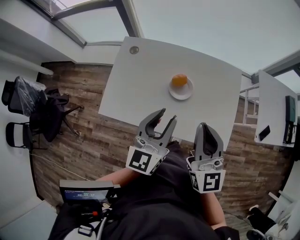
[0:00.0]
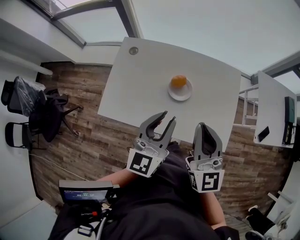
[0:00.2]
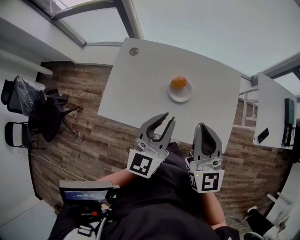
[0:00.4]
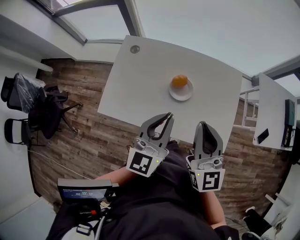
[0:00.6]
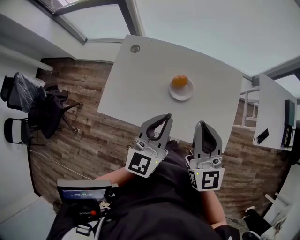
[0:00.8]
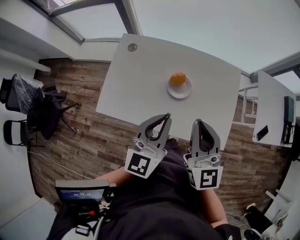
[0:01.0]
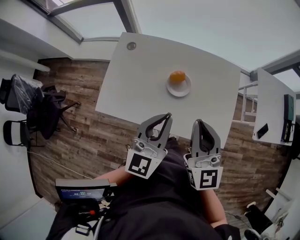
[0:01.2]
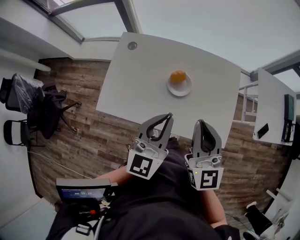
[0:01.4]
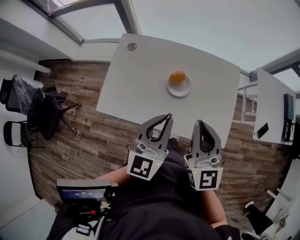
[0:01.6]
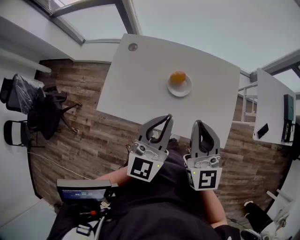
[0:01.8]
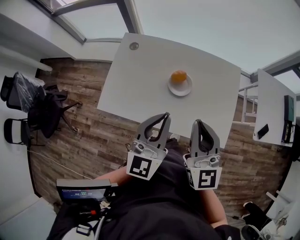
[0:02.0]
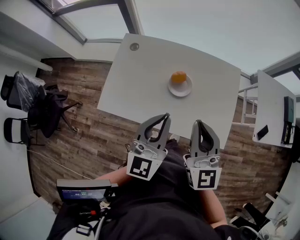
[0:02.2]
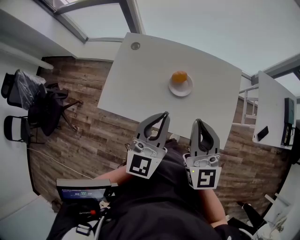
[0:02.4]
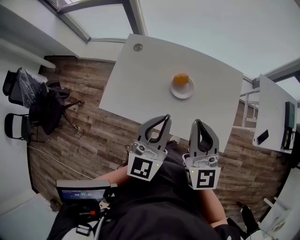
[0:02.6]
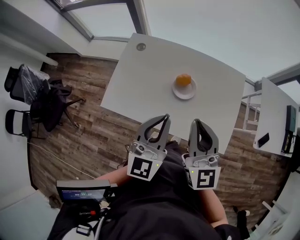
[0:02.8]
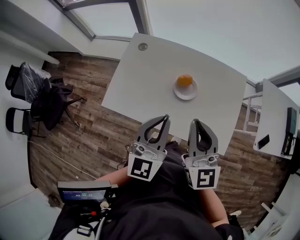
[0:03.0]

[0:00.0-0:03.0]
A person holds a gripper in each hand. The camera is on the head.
0:00.0 to 0:01.6: The left gripper closes its fingers.
0:01.6 to 0:03.0: The grippers move only a little.

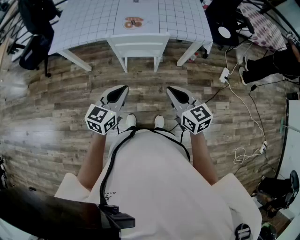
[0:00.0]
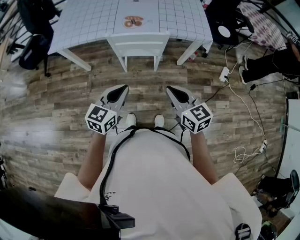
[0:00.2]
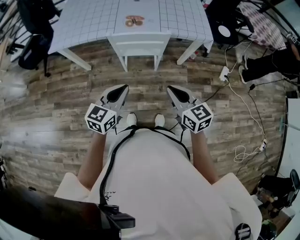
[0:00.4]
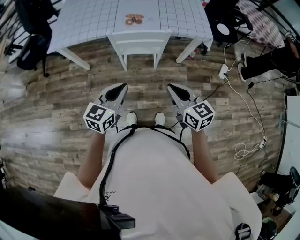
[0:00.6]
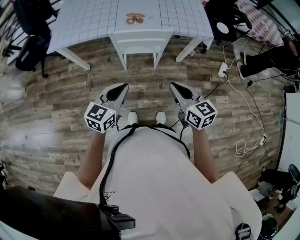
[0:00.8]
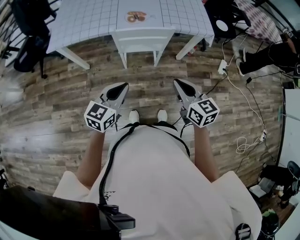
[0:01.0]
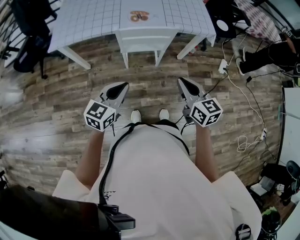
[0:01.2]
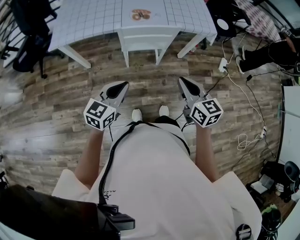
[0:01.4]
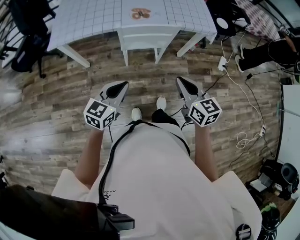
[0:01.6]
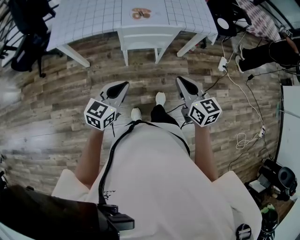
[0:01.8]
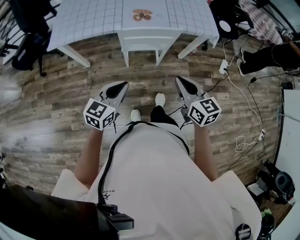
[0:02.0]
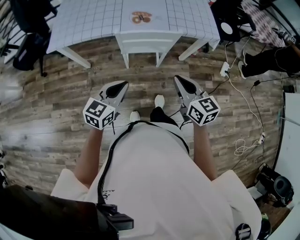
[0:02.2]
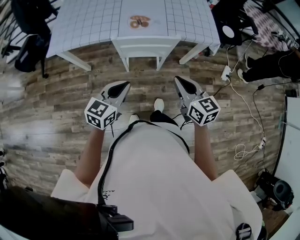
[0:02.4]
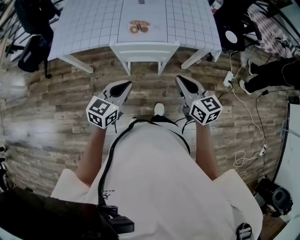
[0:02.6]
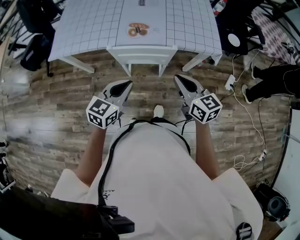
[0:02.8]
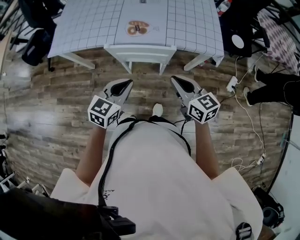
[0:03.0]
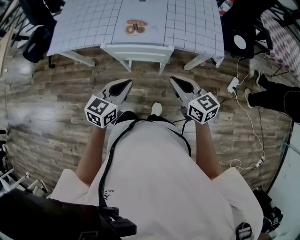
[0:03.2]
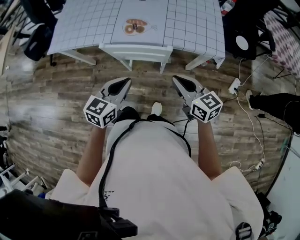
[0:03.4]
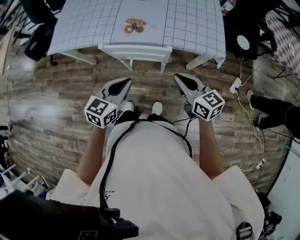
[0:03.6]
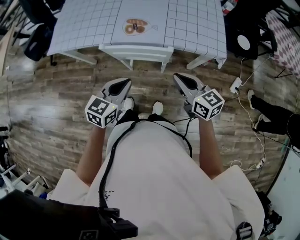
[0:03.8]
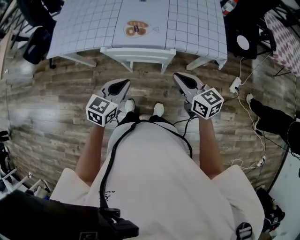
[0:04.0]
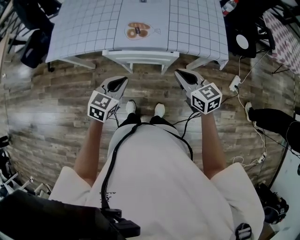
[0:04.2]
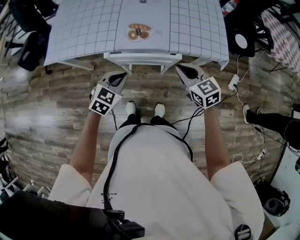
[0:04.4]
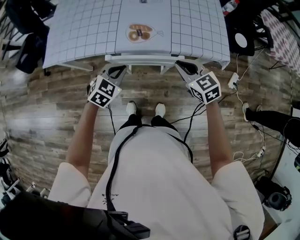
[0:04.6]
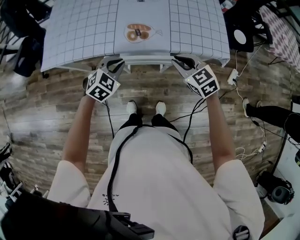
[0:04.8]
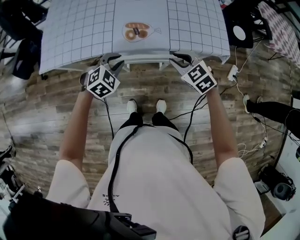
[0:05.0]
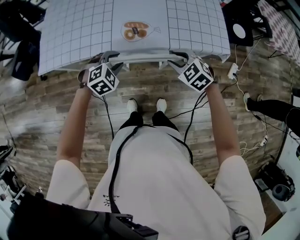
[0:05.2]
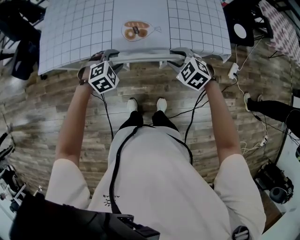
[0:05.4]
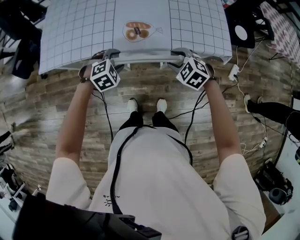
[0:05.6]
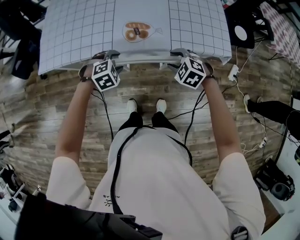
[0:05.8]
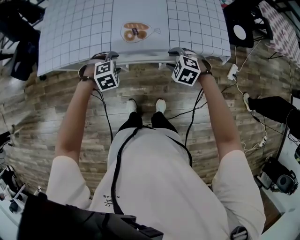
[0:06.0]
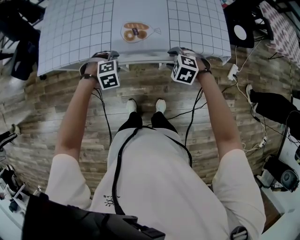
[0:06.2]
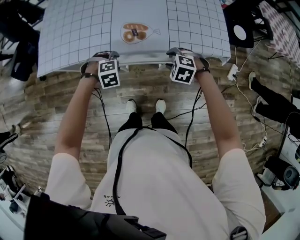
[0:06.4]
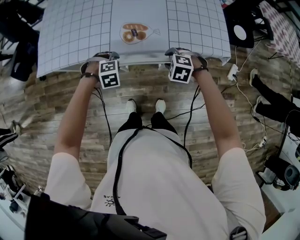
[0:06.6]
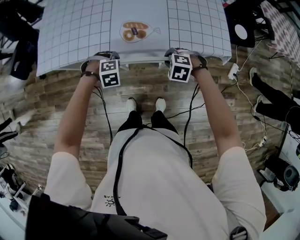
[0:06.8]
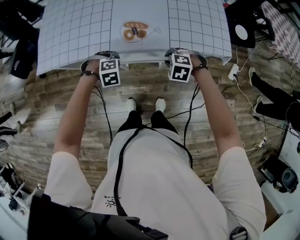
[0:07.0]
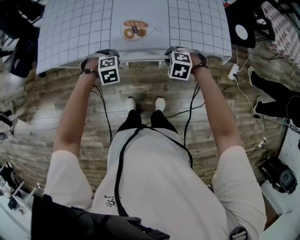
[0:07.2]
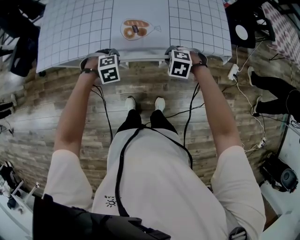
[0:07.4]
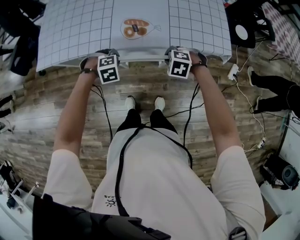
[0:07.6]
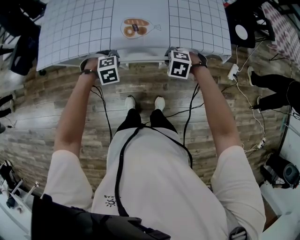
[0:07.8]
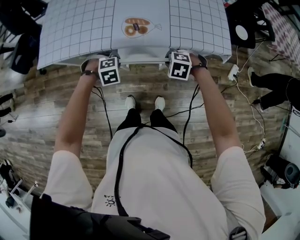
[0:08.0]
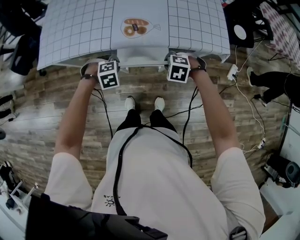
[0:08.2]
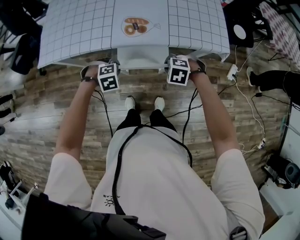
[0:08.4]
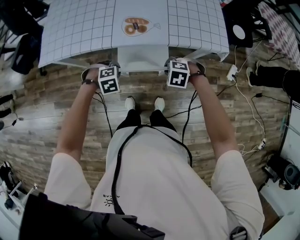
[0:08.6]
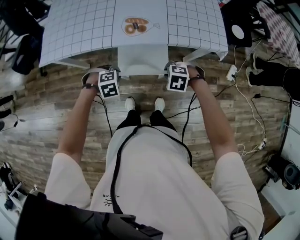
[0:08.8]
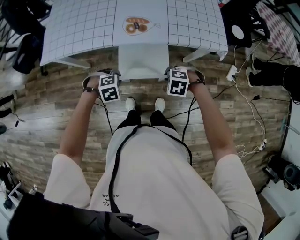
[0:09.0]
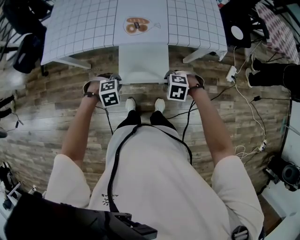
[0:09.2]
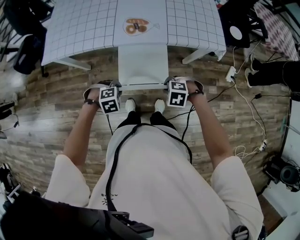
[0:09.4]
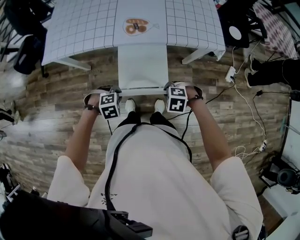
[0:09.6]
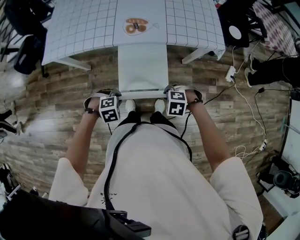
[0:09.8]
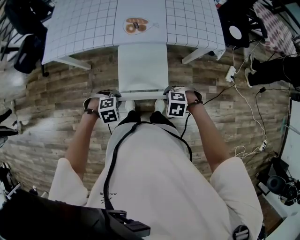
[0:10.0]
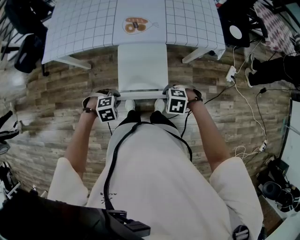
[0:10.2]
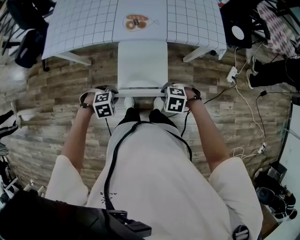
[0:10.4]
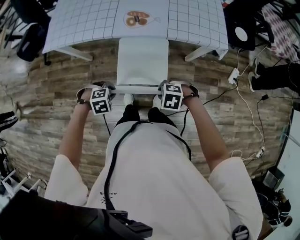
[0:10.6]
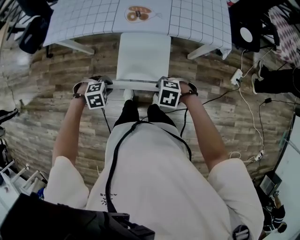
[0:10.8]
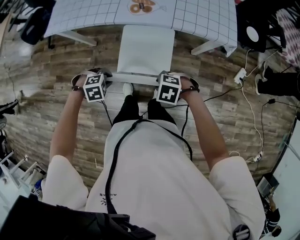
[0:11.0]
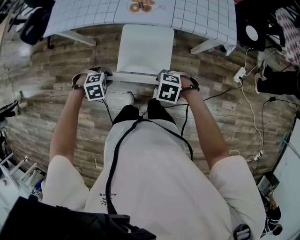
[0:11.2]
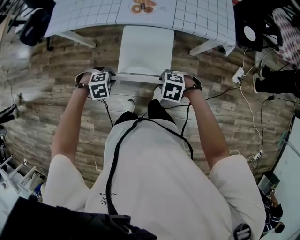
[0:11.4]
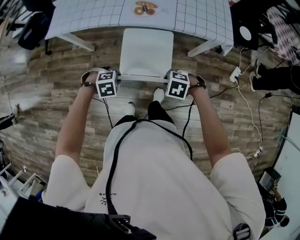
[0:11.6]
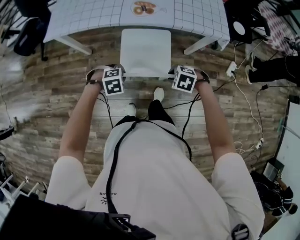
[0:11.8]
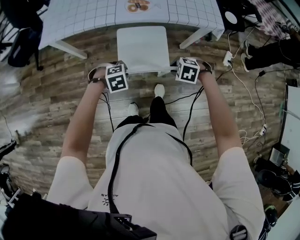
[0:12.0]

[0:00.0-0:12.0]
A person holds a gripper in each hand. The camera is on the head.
0:00.0 to 0:01.6: Both grippers travel together to the left, approximately 10 cm.
0:01.6 to 0:03.0: The grippers both shift forward and to the right by about 20 cm.
0:03.0 to 0:04.4: The left gripper travels forward and downward by some 15 cm, and rotates roughly 20 degrees; the right gripper is displaced forward by approximately 10 cm.
0:04.4 to 0:06.0: The left gripper goes roughly 15 cm forward and downward, tips its fingers downward by approximately 30 degrees, and opens up. Meanwhile the right gripper moves downward and forward, about 15 cm, tips its fingers downward by about 40 degrees, and opens its fingers.
0:06.0 to 0:07.6: The left gripper closes its fingers. Meanwhile the right gripper closes.
0:07.6 to 0:09.0: The right gripper shifts by approximately 15 cm. Meanwhile the left gripper ends up some 15 cm from where it was.
0:09.0 to 0:10.4: The left gripper changes place by approximately 10 cm, while the right gripper ends up about 10 cm from where it was.
0:10.4 to 0:12.0: There are only small adjustments of the grippers.

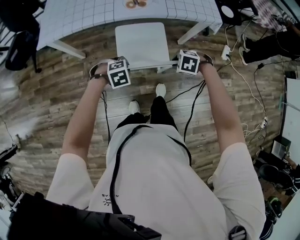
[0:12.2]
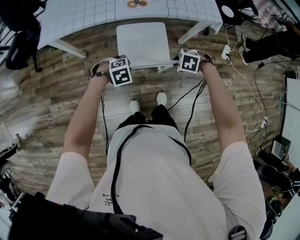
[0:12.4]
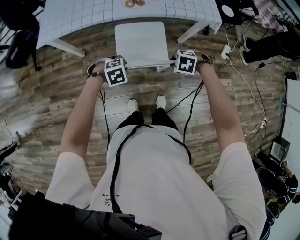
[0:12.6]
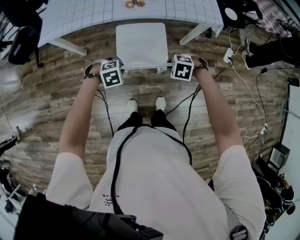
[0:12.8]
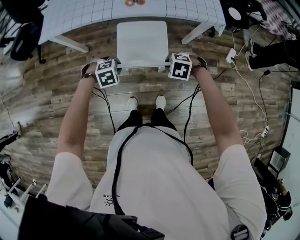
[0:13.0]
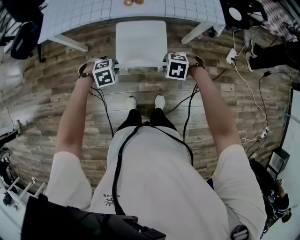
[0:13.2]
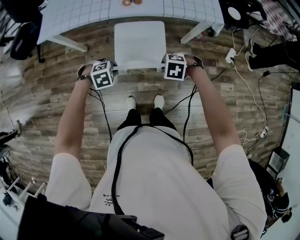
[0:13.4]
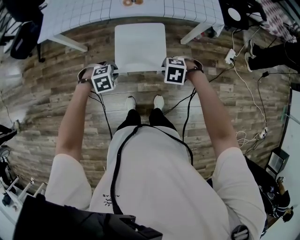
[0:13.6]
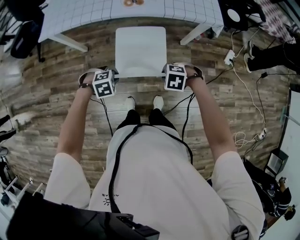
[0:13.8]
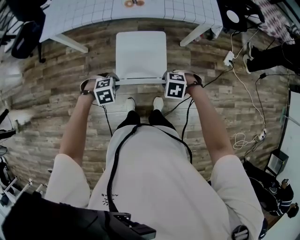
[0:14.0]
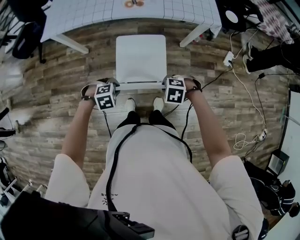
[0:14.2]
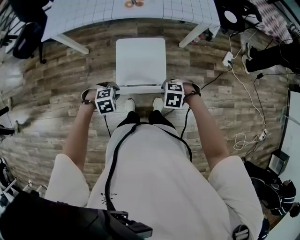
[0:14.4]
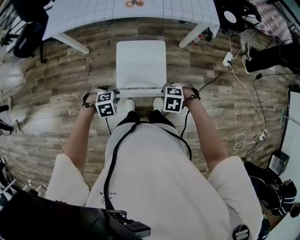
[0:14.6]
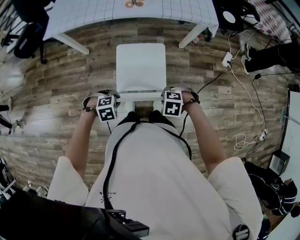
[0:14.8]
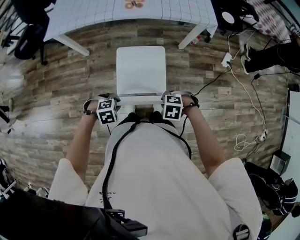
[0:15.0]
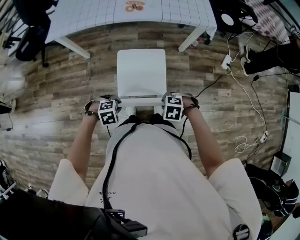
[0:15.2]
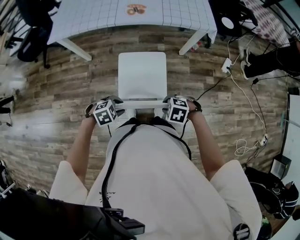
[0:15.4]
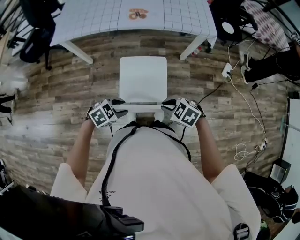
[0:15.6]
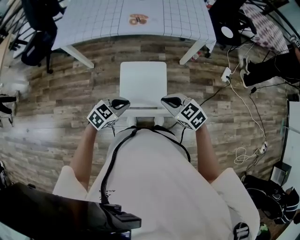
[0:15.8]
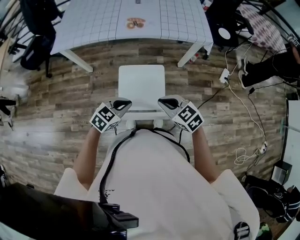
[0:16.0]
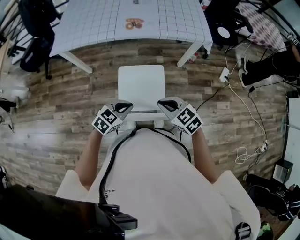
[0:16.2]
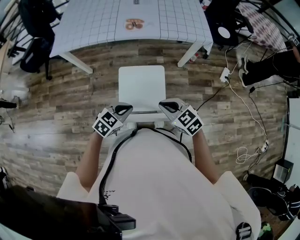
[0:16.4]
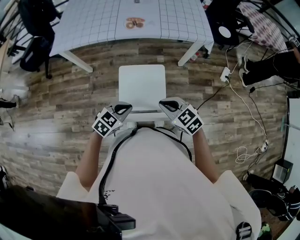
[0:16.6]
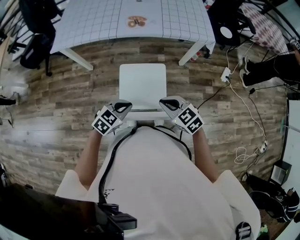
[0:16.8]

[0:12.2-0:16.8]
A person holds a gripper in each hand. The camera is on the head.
0:12.2 to 0:13.8: The right gripper changes place by about 5 cm, while the left gripper shifts by some 5 cm.
0:13.8 to 0:15.2: The right gripper changes place by some 15 cm. The left gripper changes place by approximately 20 cm.
0:15.2 to 0:16.8: The grippers both shift upward by approximately 10 cm. The right gripper tips its fingers upward by approximately 40 degrees, and closes up. Meanwhile the left gripper angles its fingers upward, by about 30 degrees, and opens, then closes once more.

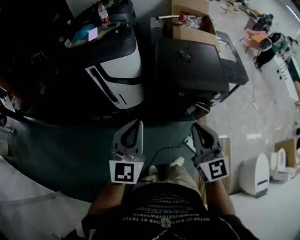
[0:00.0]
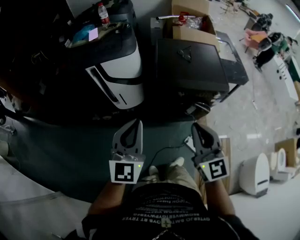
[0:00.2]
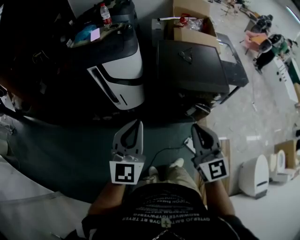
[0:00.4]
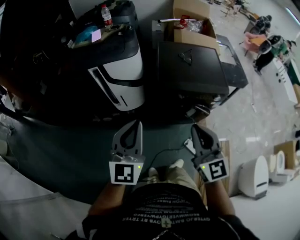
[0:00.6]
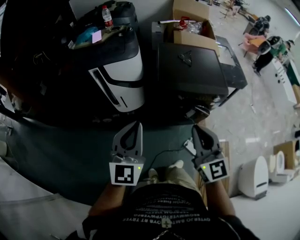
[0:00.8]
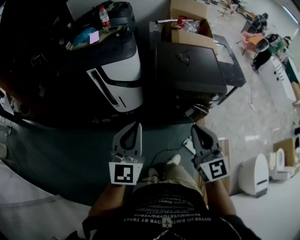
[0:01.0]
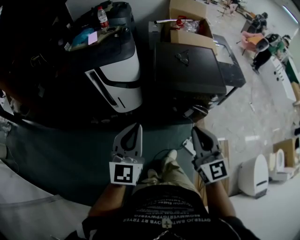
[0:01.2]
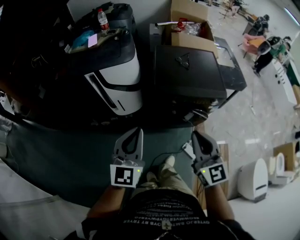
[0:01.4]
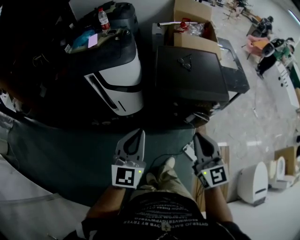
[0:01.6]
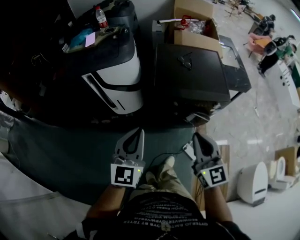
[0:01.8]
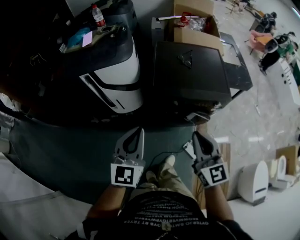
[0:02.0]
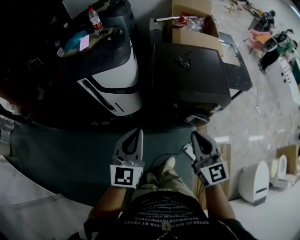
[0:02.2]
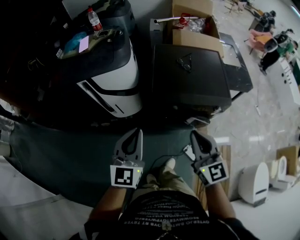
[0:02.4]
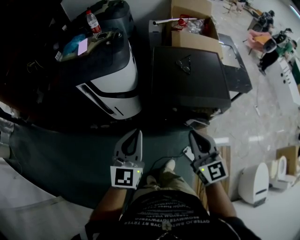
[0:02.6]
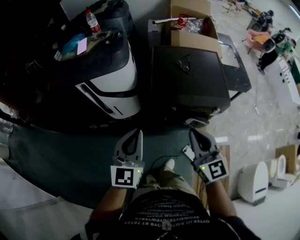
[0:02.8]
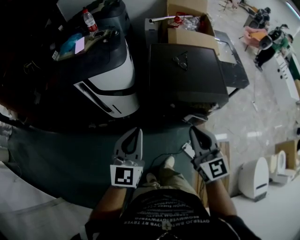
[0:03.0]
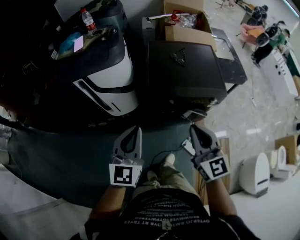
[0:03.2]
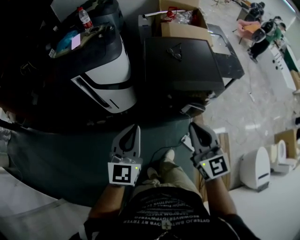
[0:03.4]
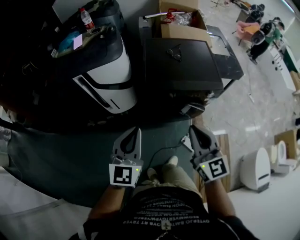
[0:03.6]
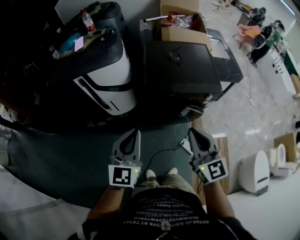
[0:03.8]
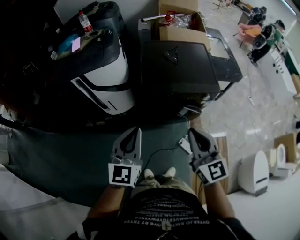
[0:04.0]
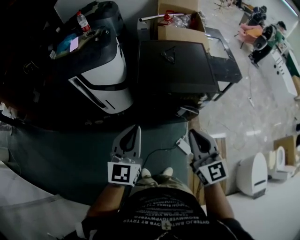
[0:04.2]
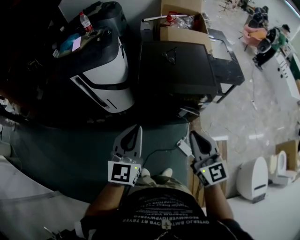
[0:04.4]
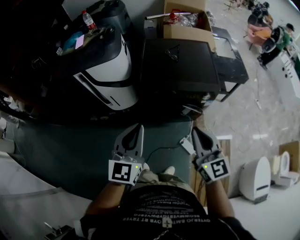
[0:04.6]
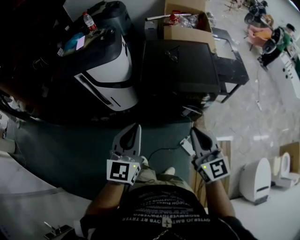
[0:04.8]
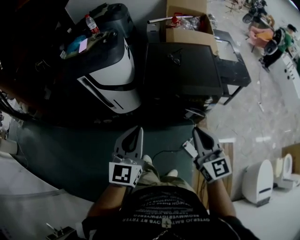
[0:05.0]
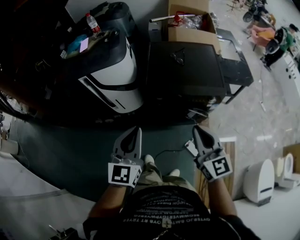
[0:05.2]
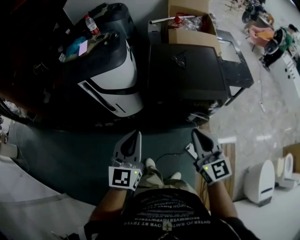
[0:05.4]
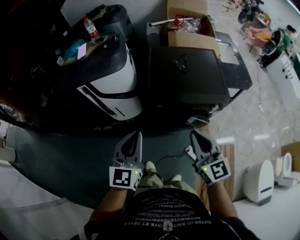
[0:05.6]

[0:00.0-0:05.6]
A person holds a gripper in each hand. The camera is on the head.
0:00.0 to 0:01.4: The grippers make only small movements.
0:01.4 to 0:02.8: The two grippers go roughly 10 cm forward.
0:02.8 to 0:04.2: Both grippers move backward and to the right, about 10 cm.
0:04.2 to 0:05.6: Both grippers travel together forward, approximately 5 cm.
